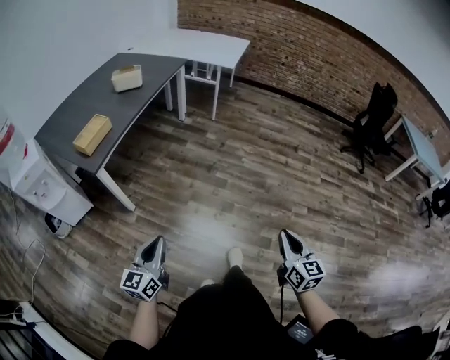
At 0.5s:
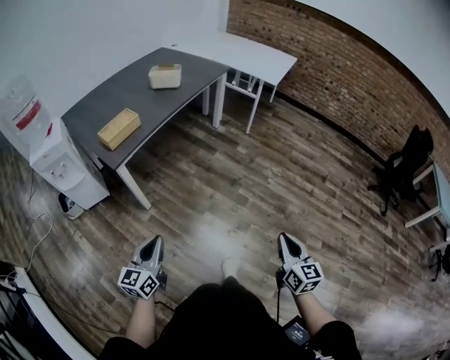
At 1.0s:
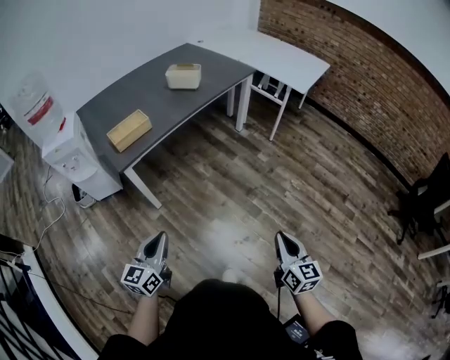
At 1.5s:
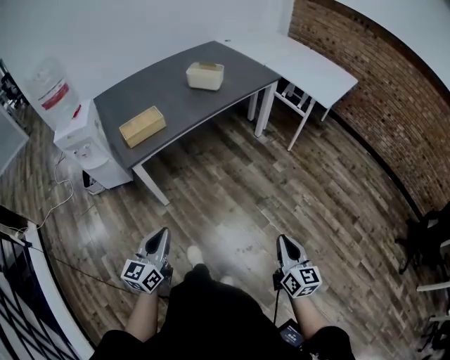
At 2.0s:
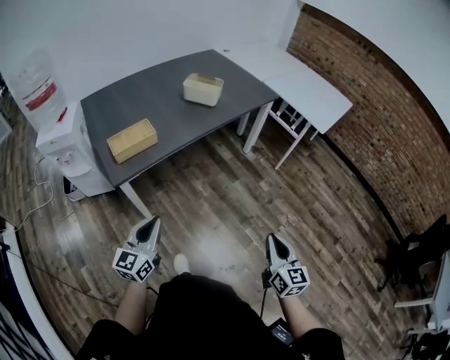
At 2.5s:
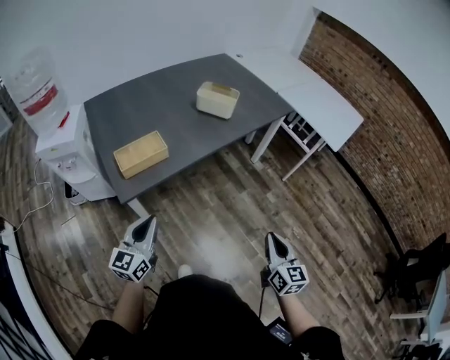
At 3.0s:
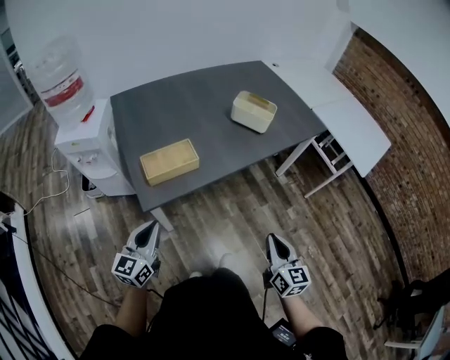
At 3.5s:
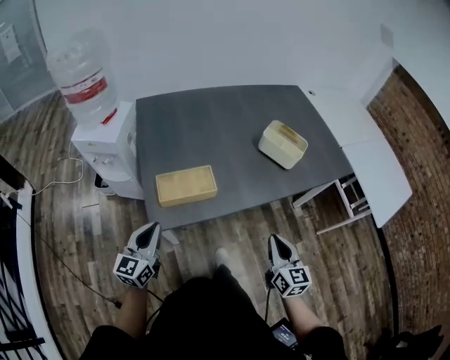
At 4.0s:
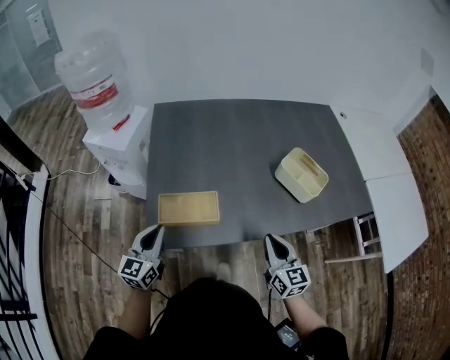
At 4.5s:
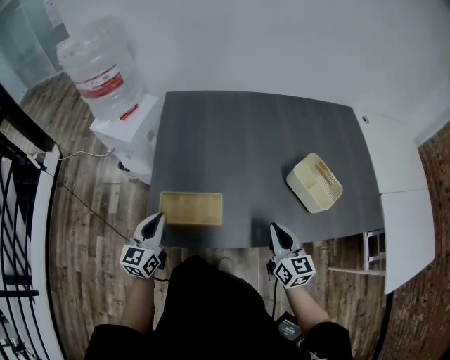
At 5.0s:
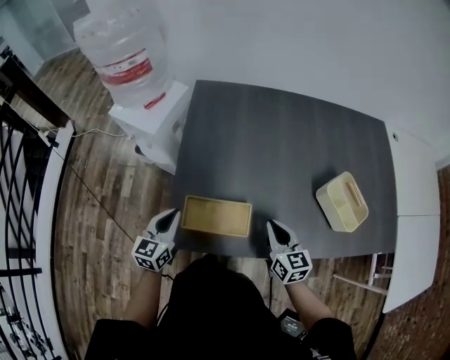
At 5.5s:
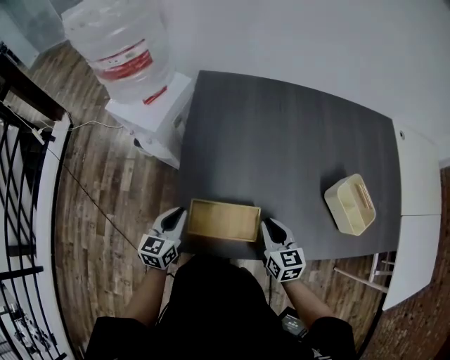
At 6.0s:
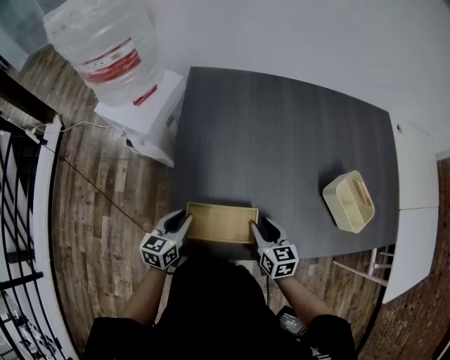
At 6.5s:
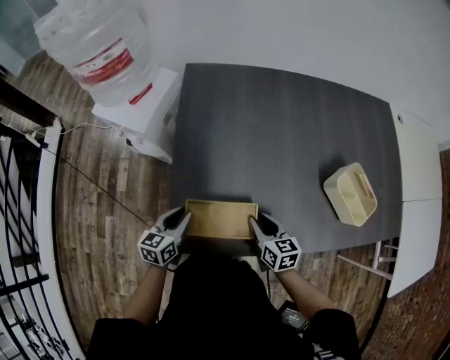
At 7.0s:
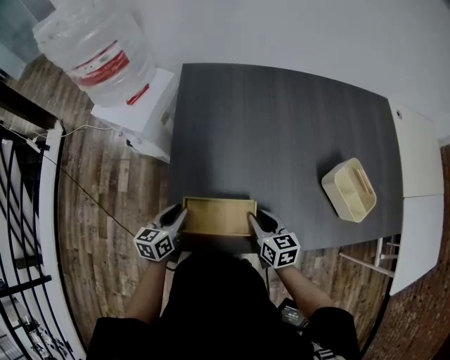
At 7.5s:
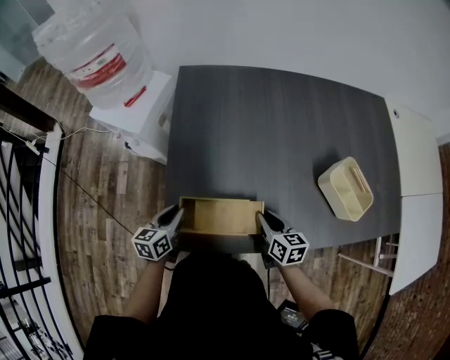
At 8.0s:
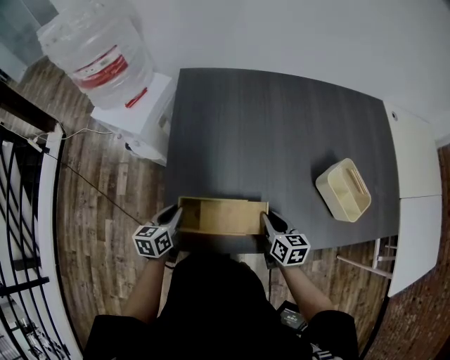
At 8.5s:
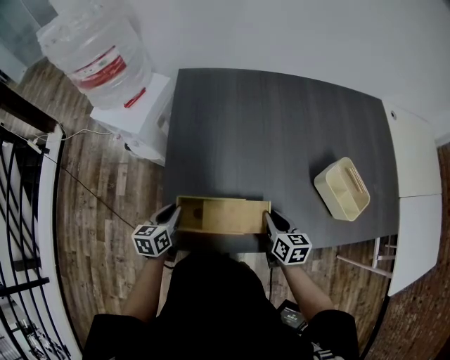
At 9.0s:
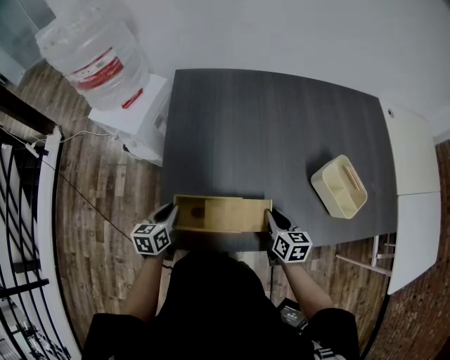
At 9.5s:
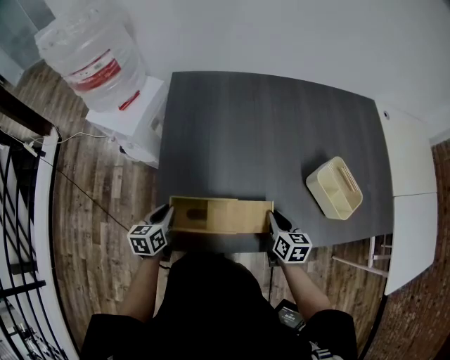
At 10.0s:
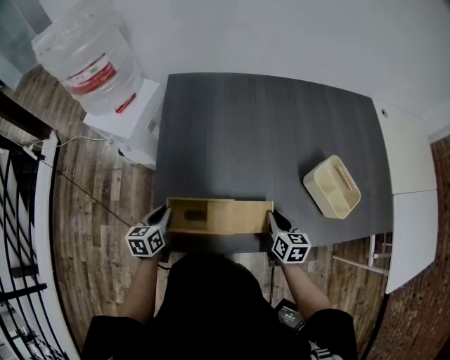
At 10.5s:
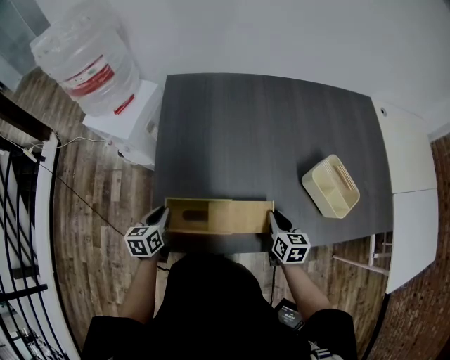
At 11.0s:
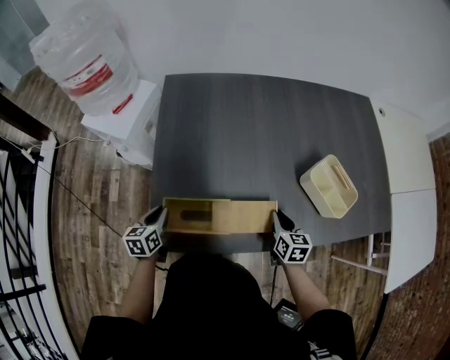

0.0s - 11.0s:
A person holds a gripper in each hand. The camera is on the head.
0.0s - 2.0s: The left gripper moves approximately 30 cm, and turns by about 30 degrees. The right gripper moves approximately 40 cm, and turns by some 30 degrees.
2.0s - 3.5s: Both grippers move forward and to the left, approximately 30 cm. The right gripper turns by about 20 degrees; the left gripper turns by roughly 20 degrees.
3.5s - 5.5s: The left gripper moves forward and downward, about 15 cm, and rotates roughly 30 degrees. The right gripper heads forward and to the left, covering approximately 30 cm, and changes its angle by some 30 degrees.
5.5s - 7.5s: The grippers make only small movements.
7.5s - 9.0s: The right gripper moves to the right, approximately 5 cm.
9.0s - 11.0s: The right gripper goes approximately 5 cm to the right.

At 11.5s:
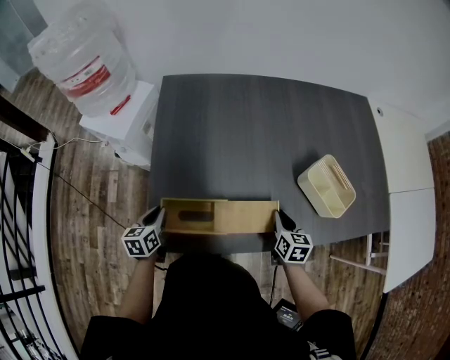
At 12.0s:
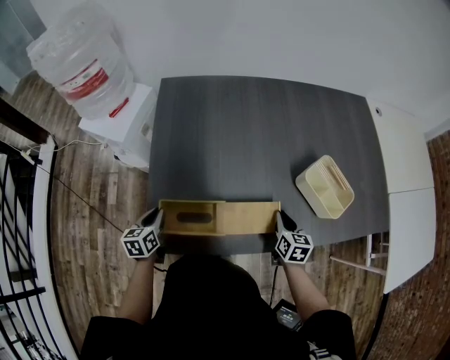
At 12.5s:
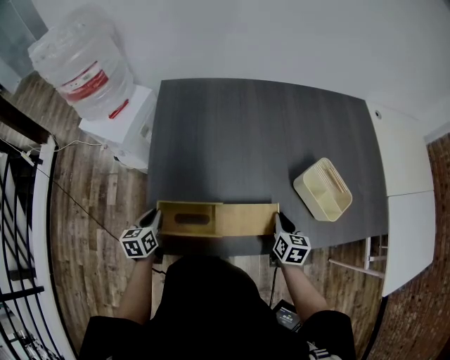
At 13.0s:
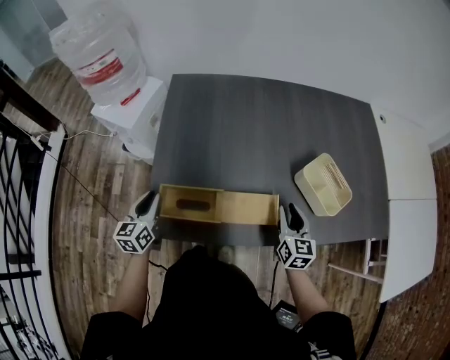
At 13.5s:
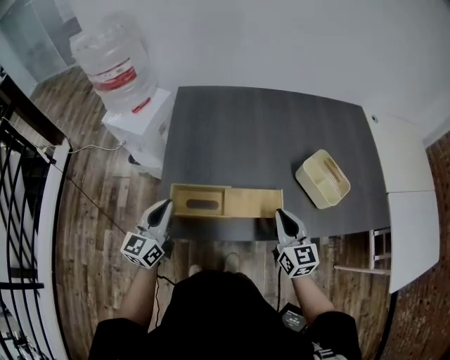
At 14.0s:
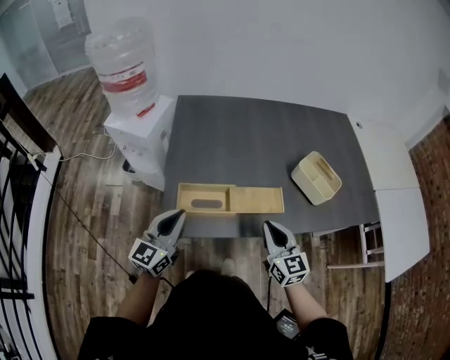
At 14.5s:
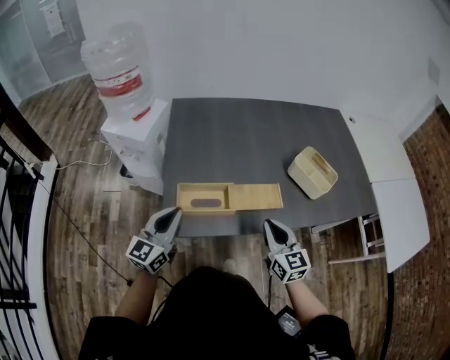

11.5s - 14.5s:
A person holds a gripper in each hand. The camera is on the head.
11.5s - 13.0s: Both grippers move upward, about 10 cm.
13.0s - 14.5s: The left gripper moves upward and backward, some 15 cm, and changes its angle by approximately 30 degrees. Meanwhile the right gripper moves backward, to the left and upward, roughly 20 cm, and closes up.

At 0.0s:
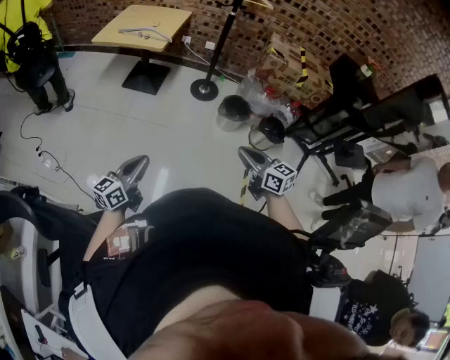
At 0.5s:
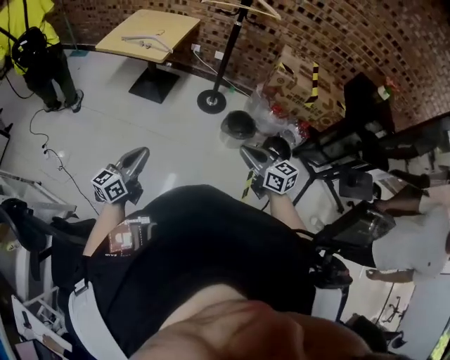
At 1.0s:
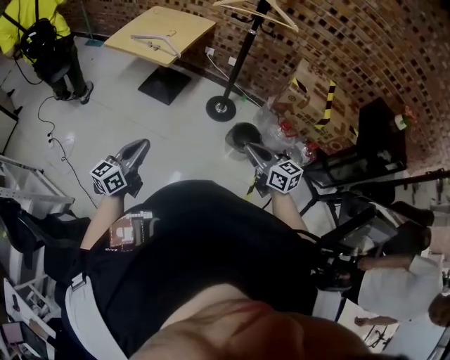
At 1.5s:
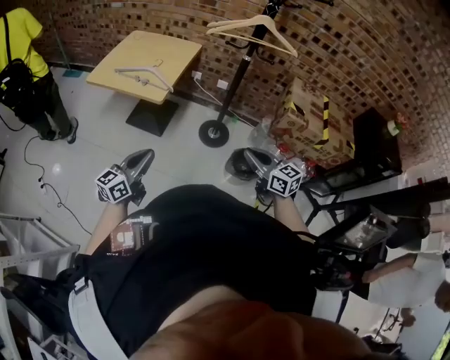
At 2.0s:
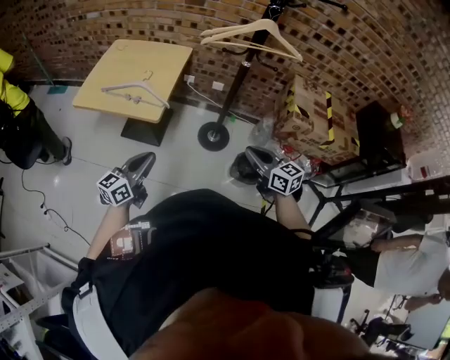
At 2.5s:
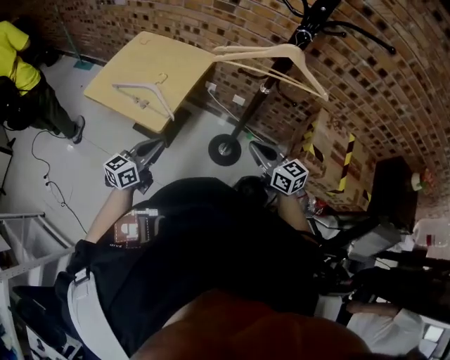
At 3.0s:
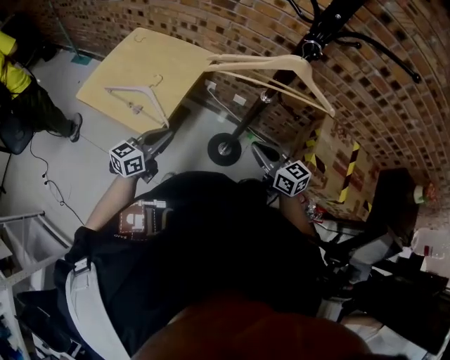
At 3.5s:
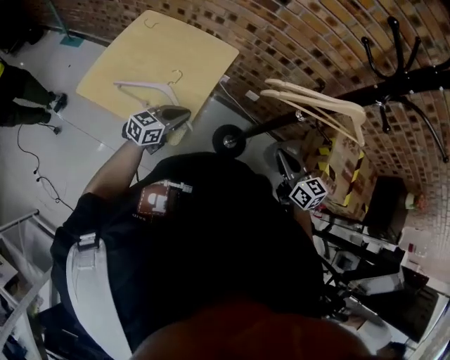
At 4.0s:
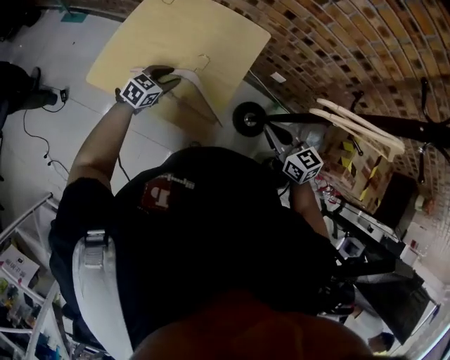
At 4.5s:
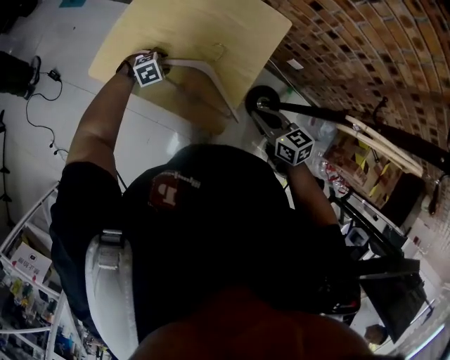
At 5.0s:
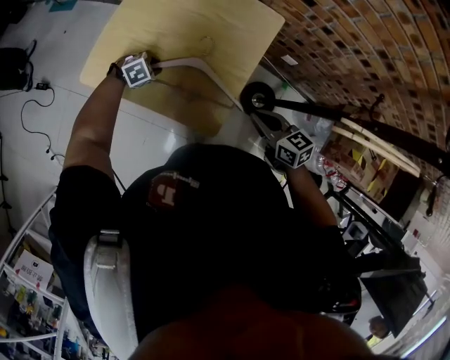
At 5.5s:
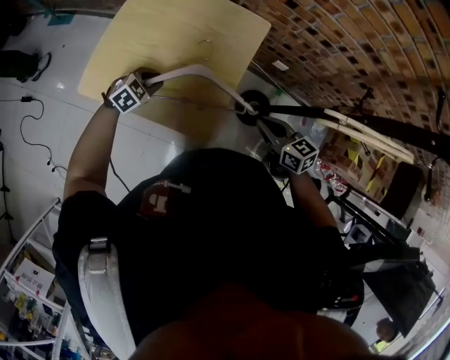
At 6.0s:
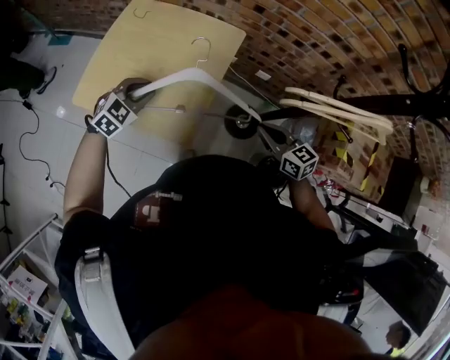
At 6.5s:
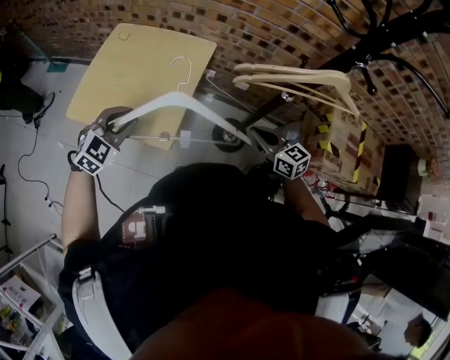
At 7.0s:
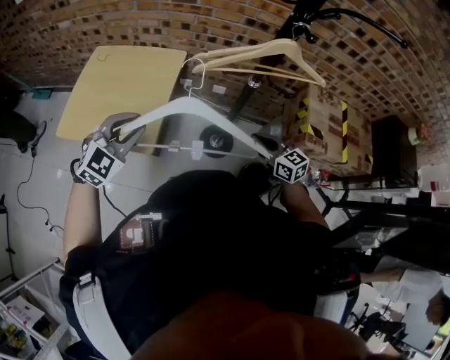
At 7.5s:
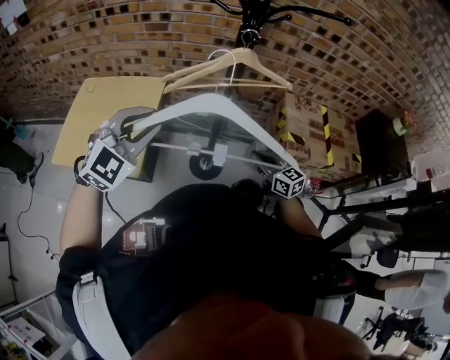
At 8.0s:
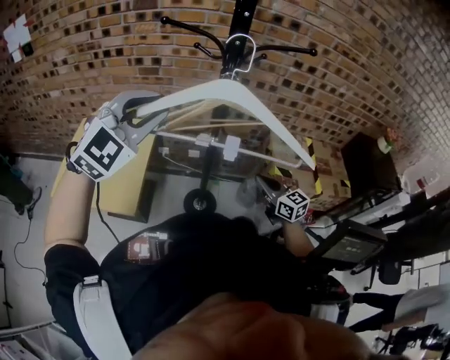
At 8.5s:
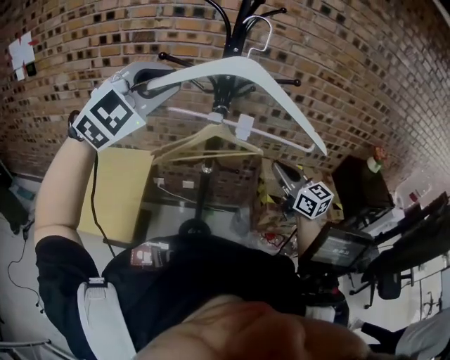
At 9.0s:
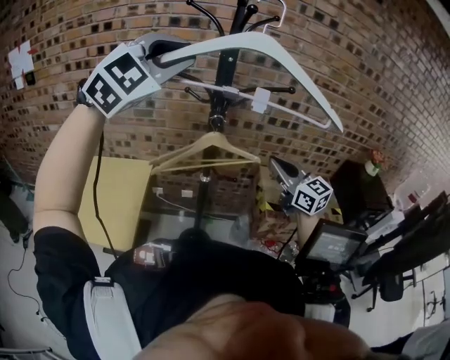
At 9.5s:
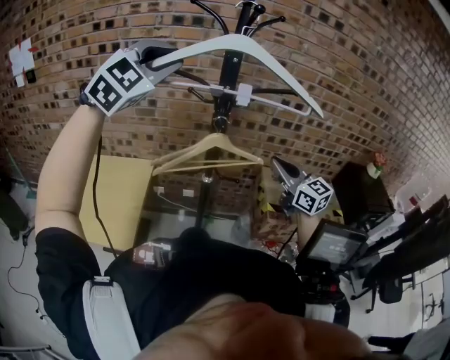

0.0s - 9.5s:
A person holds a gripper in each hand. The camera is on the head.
0.0s - 2.0s: The two grippers travel together, forward, about 50 cm.
2.0s - 4.0s: The pair of grippers is taken forward, roughly 50 cm. The left gripper goes approximately 20 cm downward, angles its fingers downward, by about 40 degrees, and opens up.
4.0s - 5.5s: The right gripper travels downward by some 5 cm, and travels to the left and back again, some 10 cm each way. The left gripper travels downward and back again, some 15 cm each way, and changes its angle by some 30 degrees.
5.5s - 7.5s: The right gripper heads to the right and backward, covering some 40 cm, and changes its angle by roughly 30 degrees. The left gripper heads upward, to the right and backward, covering approximately 60 cm, and points its fingers about 40 degrees further upward.
7.5s - 9.5s: The left gripper moves upward and forward, some 35 cm, while the right gripper shifts roughly 30 cm upward, and turns by about 20 degrees.

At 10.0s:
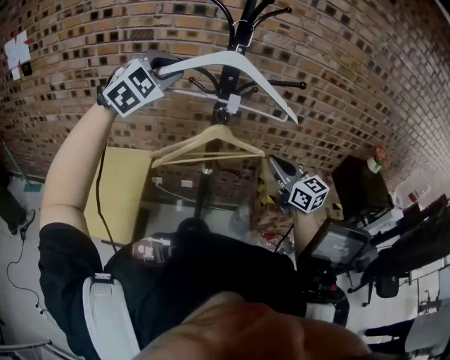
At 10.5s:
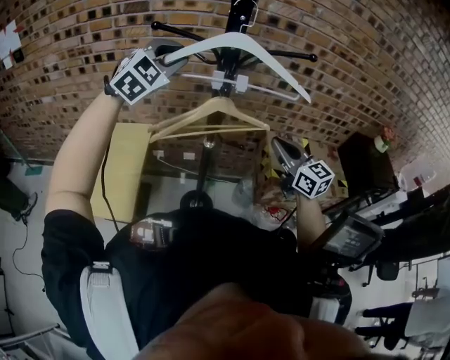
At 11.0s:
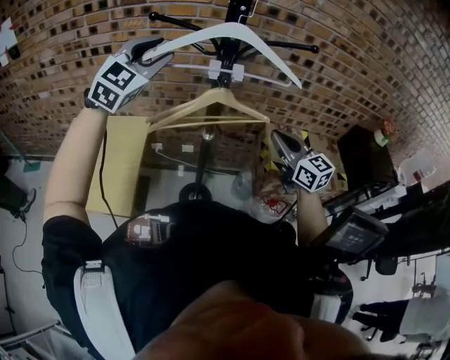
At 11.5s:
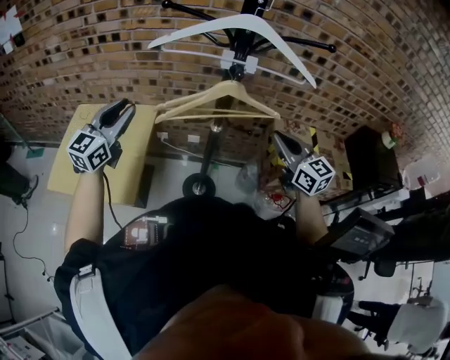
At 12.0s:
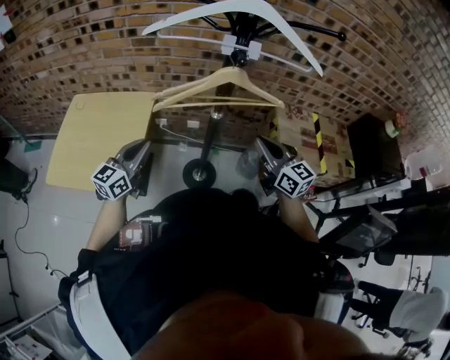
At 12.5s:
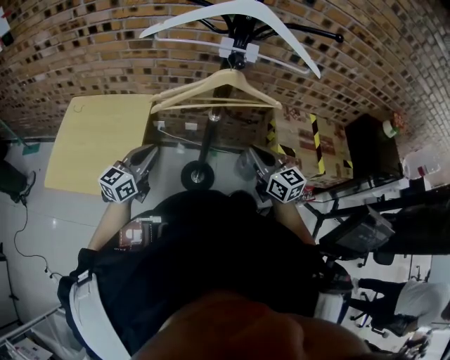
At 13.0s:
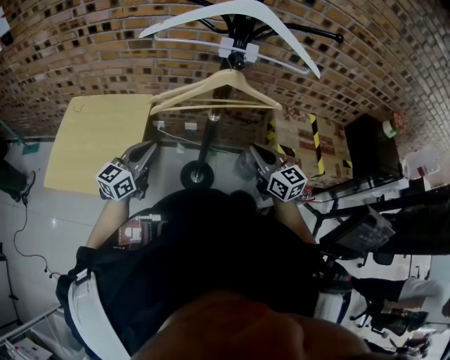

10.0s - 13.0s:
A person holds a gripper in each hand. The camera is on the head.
10.0s - 11.5s: The right gripper heads downward, covering some 5 cm; the left gripper heads downward and to the left, covering some 25 cm, and rotates around the line of its fingers by some 50 degrees, counterclockwise from behind.
11.5s - 13.0s: The right gripper travels downward by roughly 10 cm, while the left gripper goes about 15 cm downward and to the right, swivels some 20 degrees, and closes up.
